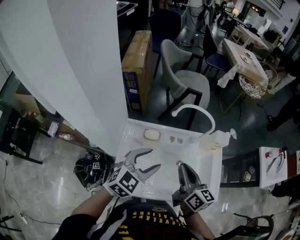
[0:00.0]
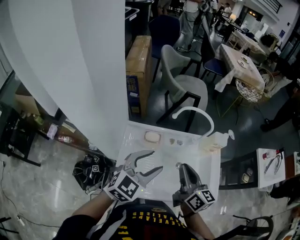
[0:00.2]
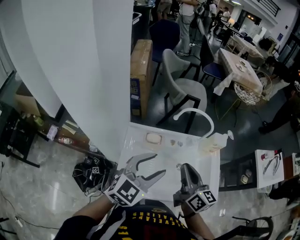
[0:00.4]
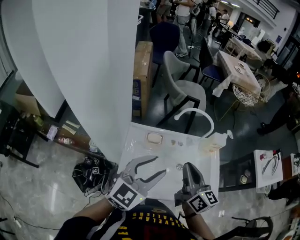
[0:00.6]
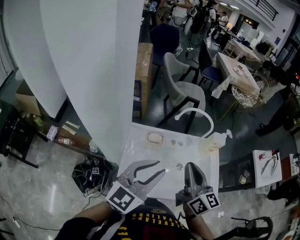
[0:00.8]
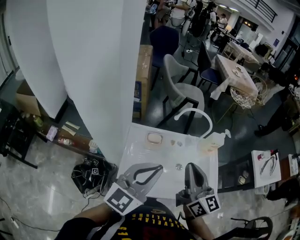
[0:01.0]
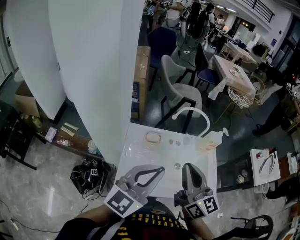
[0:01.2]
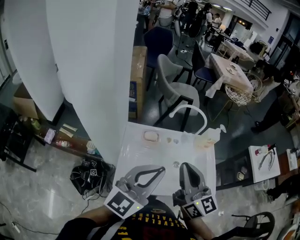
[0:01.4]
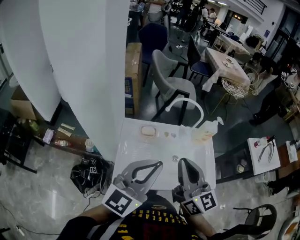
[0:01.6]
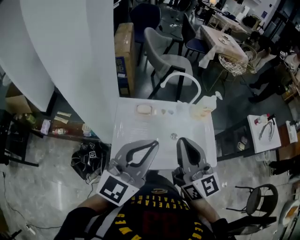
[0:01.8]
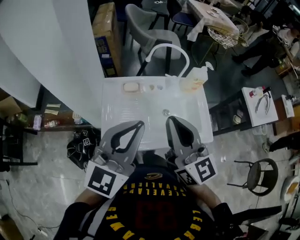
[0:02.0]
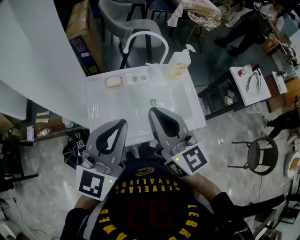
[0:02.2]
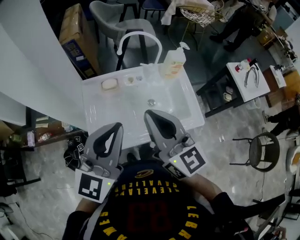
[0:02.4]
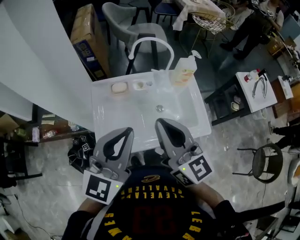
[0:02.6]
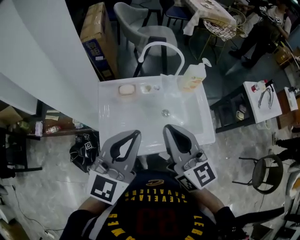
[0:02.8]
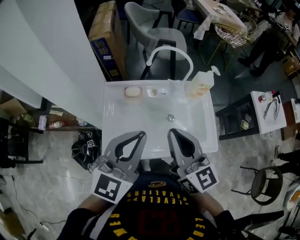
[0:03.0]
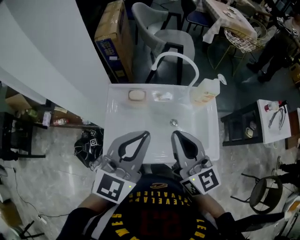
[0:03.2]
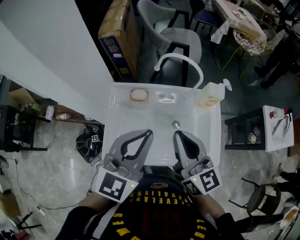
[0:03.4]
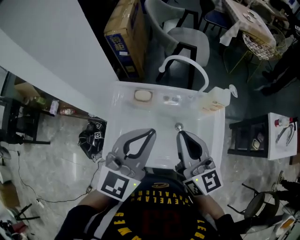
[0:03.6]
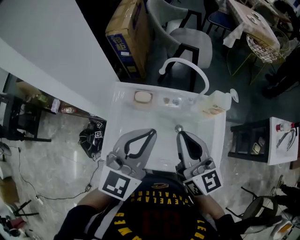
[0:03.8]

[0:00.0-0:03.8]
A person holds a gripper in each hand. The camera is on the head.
0:00.0 to 0:01.2: The grippers both shift upward and backward by about 20 cm. The right gripper swivels about 30 degrees. The left gripper angles its fingers upward, by about 30 degrees, and closes its fingers.
0:01.2 to 0:02.6: The left gripper changes place by about 5 cm. Meanwhile the right gripper shifts by about 5 cm.
0:02.6 to 0:03.8: Both grippers move forward and to the right, approximately 15 cm.

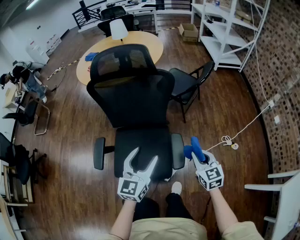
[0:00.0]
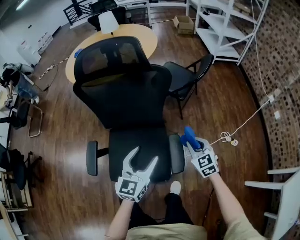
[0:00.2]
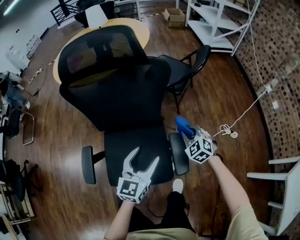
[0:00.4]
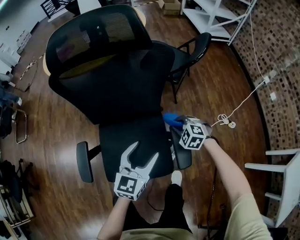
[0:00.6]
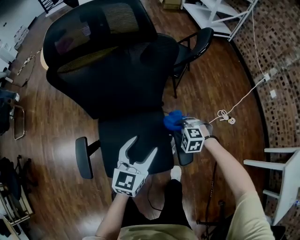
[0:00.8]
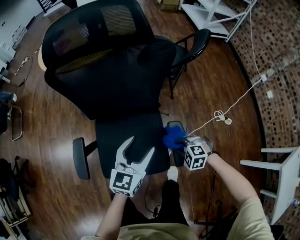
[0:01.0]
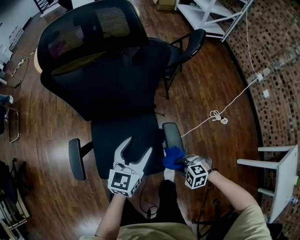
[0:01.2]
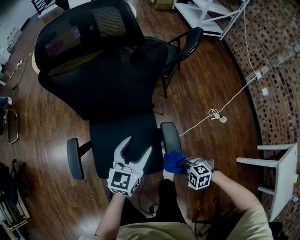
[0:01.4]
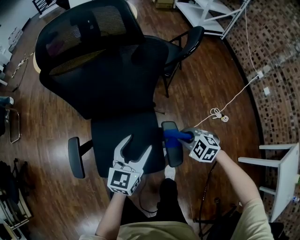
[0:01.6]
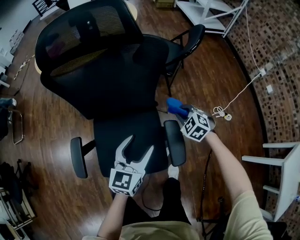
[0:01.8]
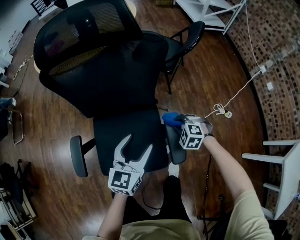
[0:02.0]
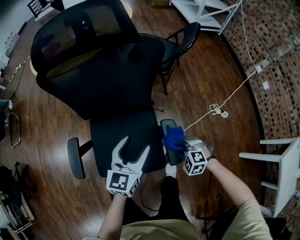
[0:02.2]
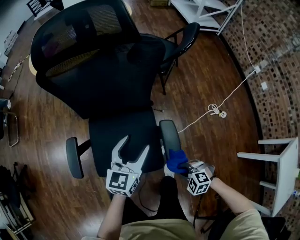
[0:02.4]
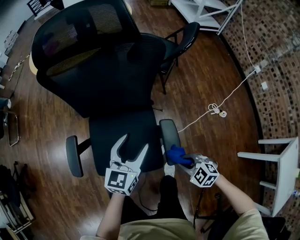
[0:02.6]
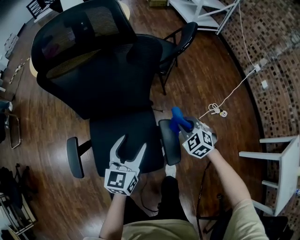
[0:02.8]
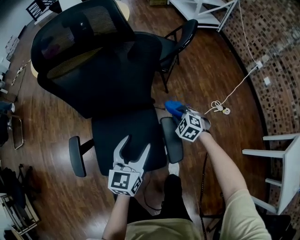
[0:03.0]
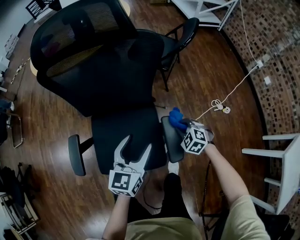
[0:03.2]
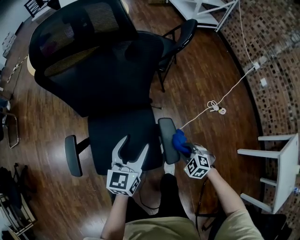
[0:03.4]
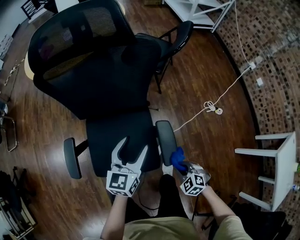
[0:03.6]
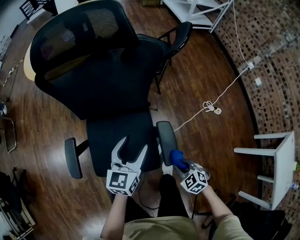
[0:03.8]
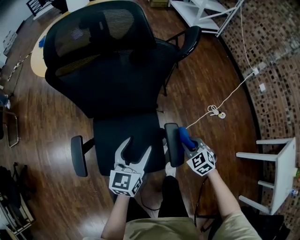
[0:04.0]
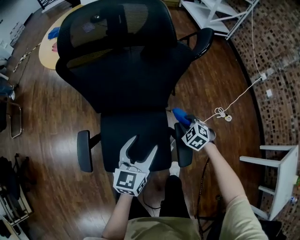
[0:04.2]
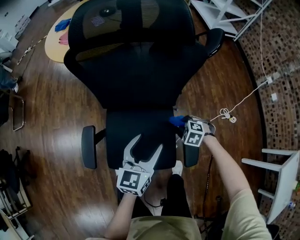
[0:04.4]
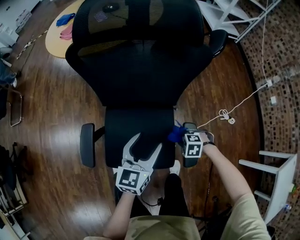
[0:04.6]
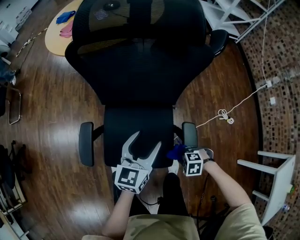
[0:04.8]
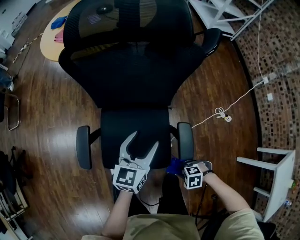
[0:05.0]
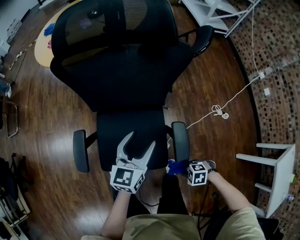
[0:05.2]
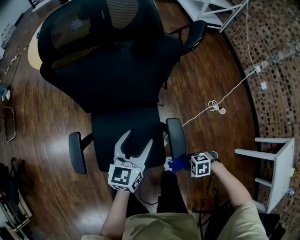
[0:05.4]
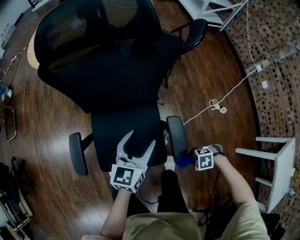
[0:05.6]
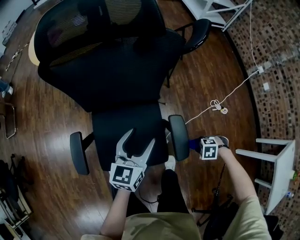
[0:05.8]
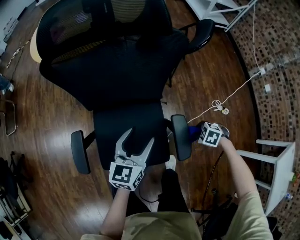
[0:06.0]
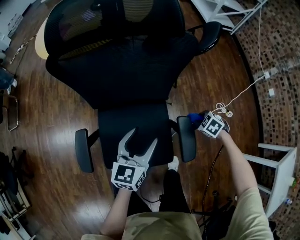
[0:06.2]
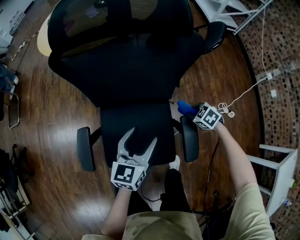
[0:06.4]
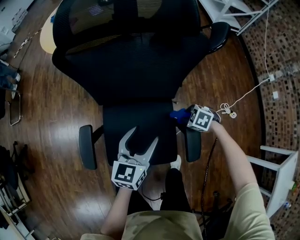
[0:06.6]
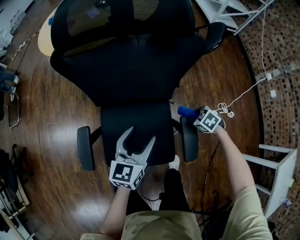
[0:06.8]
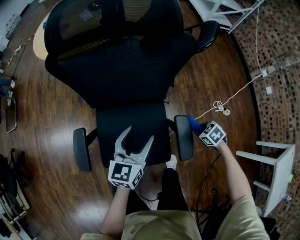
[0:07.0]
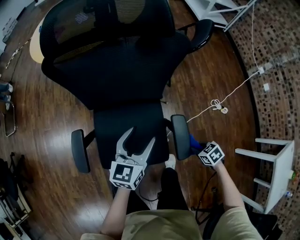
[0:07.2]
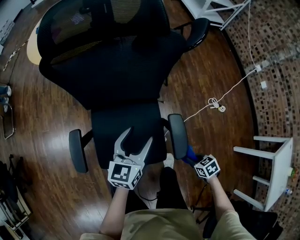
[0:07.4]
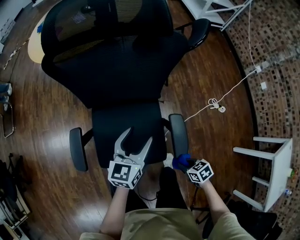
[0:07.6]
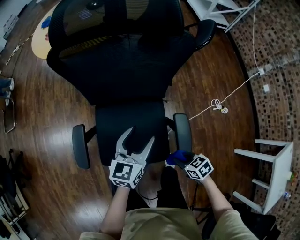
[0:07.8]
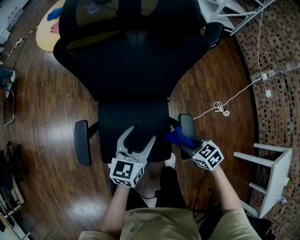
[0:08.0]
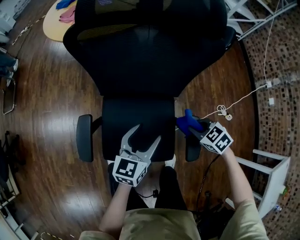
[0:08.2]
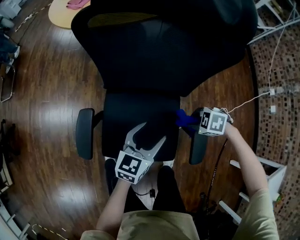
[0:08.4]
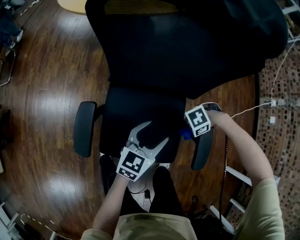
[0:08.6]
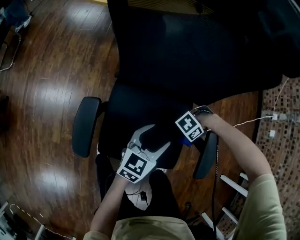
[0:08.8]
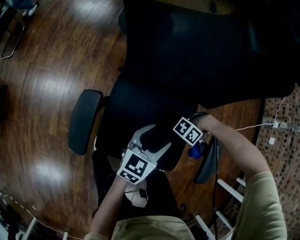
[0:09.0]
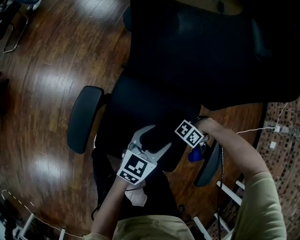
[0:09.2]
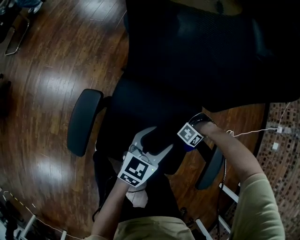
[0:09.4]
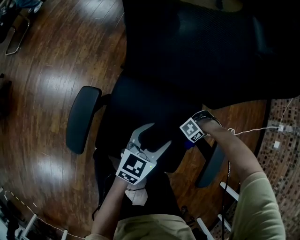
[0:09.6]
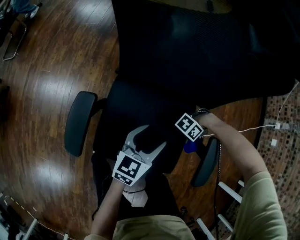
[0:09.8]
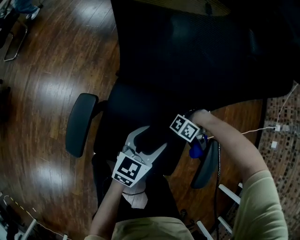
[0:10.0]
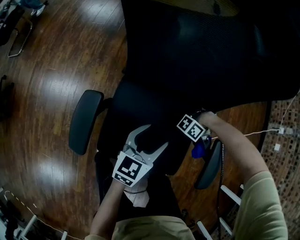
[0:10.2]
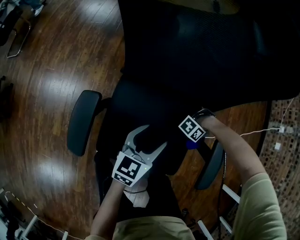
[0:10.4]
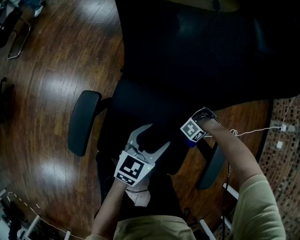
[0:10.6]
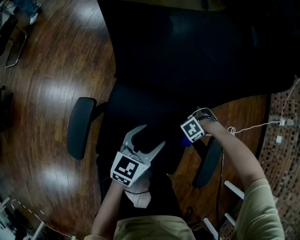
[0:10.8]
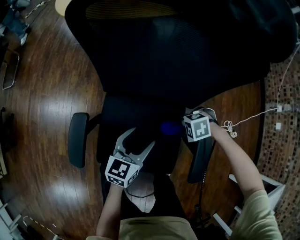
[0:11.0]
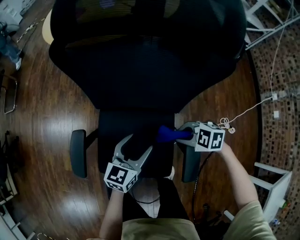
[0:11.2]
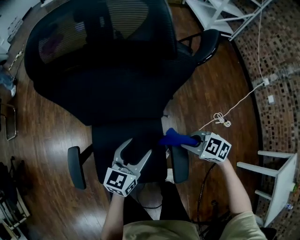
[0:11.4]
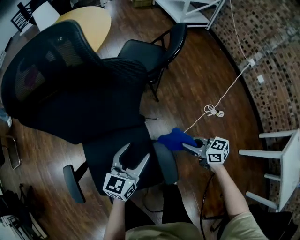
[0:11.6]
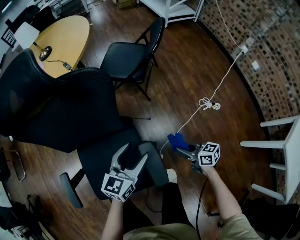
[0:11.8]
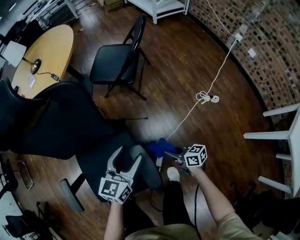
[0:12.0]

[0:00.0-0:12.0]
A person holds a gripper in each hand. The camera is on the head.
0:00.0 to 0:01.6: The two grippers go about 15 cm downward. The right gripper swivels some 50 degrees.
0:01.6 to 0:03.0: The right gripper moves forward and backward over approximately 30 cm, changing direction 2 times.
0:03.0 to 0:04.4: The right gripper changes its angle by about 20 degrees; the left gripper ends up roughly 5 cm from where it was.
0:06.0 to 0:07.6: The right gripper shifts by about 20 cm, and twists some 40 degrees clockwise, seen from behind.
0:07.6 to 0:09.0: The left gripper travels downward by approximately 15 cm, while the right gripper tips its fingers upward by about 50 degrees.
0:09.0 to 0:10.4: The right gripper goes up and down, about 15 cm each way, reversing 2 times.
0:10.4 to 0:12.0: The right gripper swings up and down, some 25 cm each way, with 2 reversals, and swivels approximately 170 degrees, while the left gripper ends up roughly 30 cm from where it was, and swivels approximately 20 degrees.

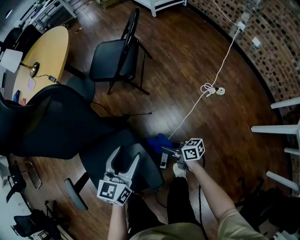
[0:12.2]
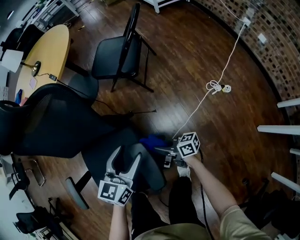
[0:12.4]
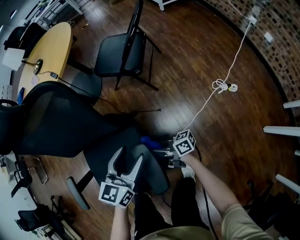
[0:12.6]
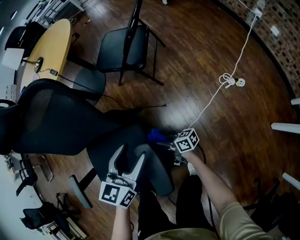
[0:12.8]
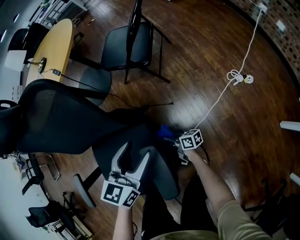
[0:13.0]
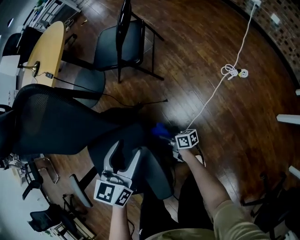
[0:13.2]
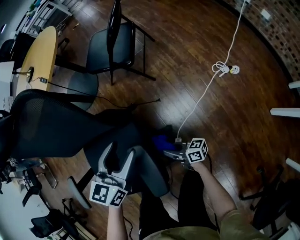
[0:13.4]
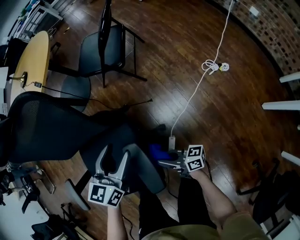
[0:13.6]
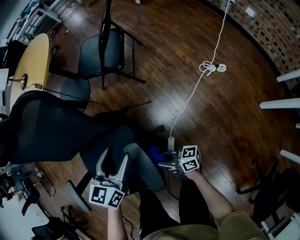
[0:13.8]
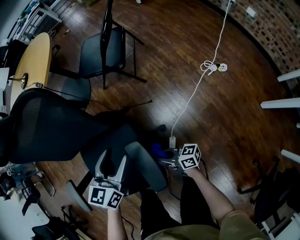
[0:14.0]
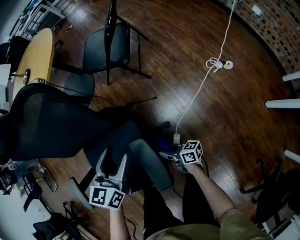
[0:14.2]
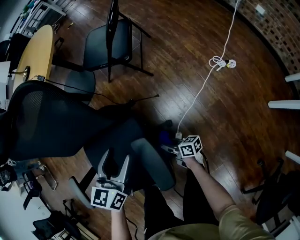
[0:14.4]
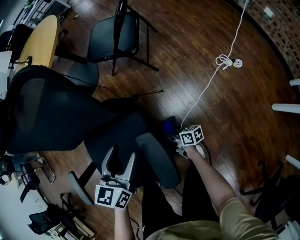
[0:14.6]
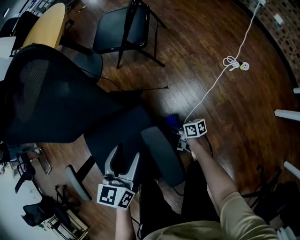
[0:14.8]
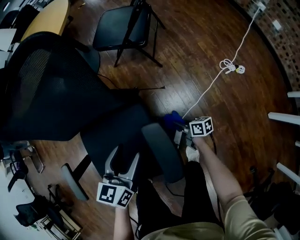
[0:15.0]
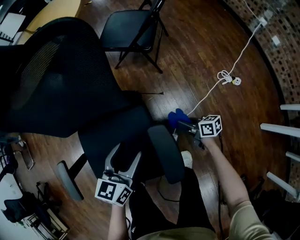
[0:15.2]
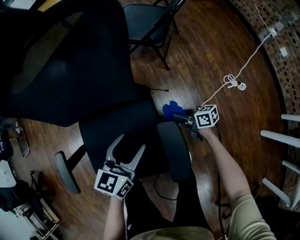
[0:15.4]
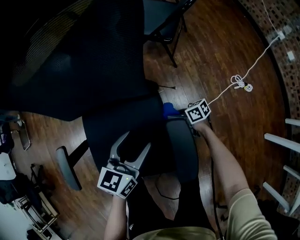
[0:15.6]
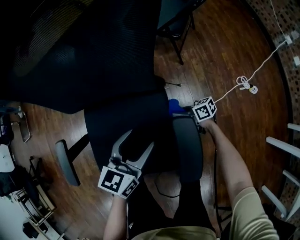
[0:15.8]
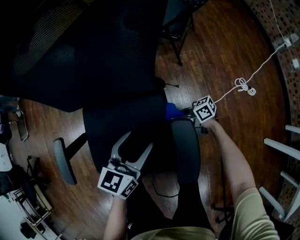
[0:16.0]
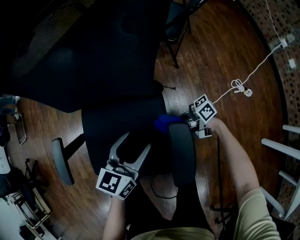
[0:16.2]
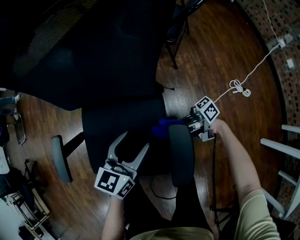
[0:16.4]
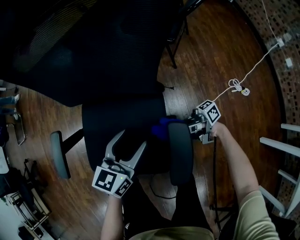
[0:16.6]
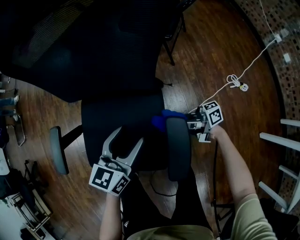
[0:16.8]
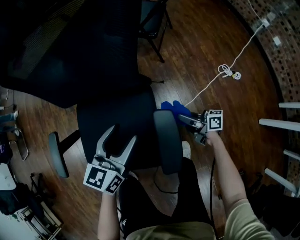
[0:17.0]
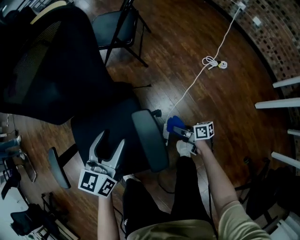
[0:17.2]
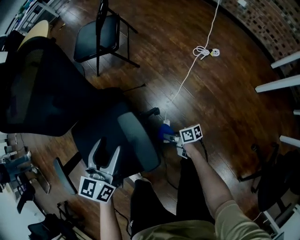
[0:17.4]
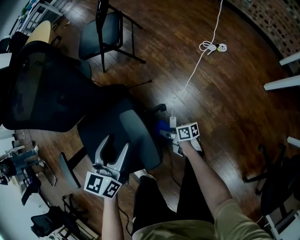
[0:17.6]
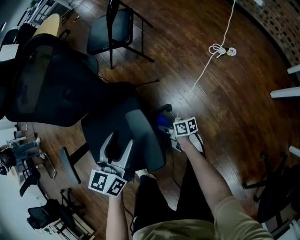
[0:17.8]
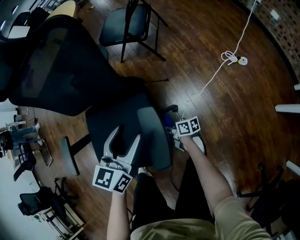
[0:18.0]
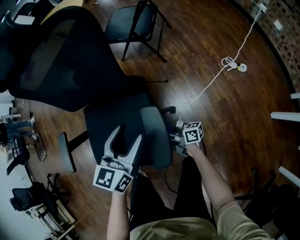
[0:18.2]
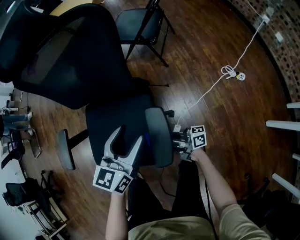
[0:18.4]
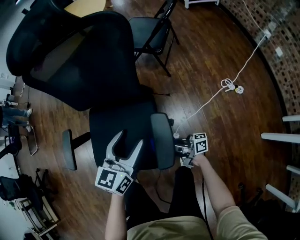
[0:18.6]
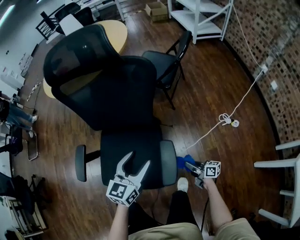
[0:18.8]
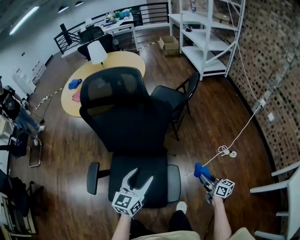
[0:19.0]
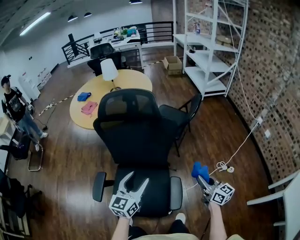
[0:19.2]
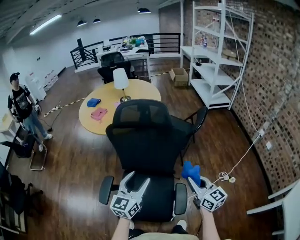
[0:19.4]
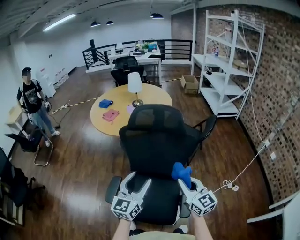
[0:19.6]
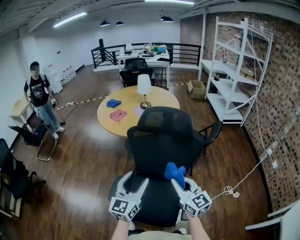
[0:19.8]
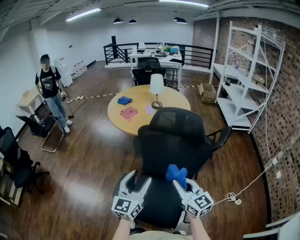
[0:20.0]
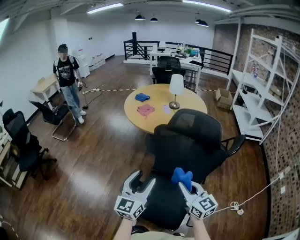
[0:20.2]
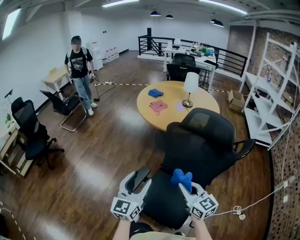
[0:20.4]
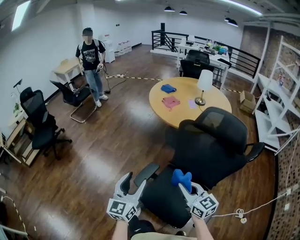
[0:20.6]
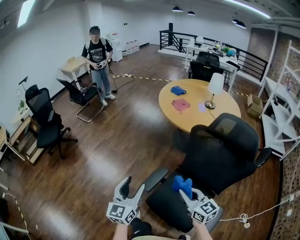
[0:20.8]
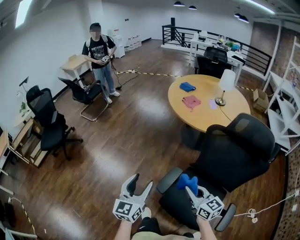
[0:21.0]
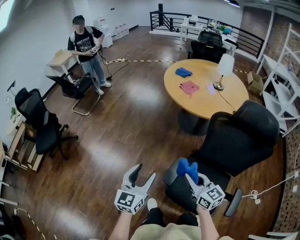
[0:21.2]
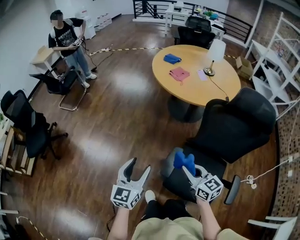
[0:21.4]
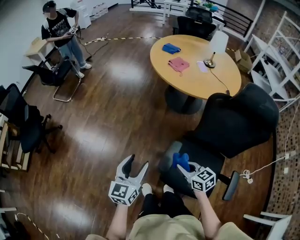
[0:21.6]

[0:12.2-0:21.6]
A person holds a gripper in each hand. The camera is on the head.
0:12.2 to 0:13.8: The right gripper shifts about 10 cm to the left and backward, moves approximately 15 cm downward and comes back, and swivels some 20 degrees.
0:13.8 to 0:15.4: The right gripper travels forward and downward by some 20 cm, and changes its angle by approximately 30 degrees. The left gripper moves to the left, some 10 cm.
0:15.4 to 0:17.0: The right gripper swings up and down, roughly 15 cm each way, with 2 reversals, and turns by some 20 degrees.
0:17.0 to 0:18.4: The left gripper heads to the right, covering some 5 cm; the right gripper shifts some 10 cm backward and to the left, travels downward and back again, about 10 cm each way, and changes its angle by approximately 20 degrees.
0:18.4 to 0:20.0: The right gripper moves upward, about 50 cm, and rotates around the line of its fingers by approximately 60 degrees, counterclockwise from behind, while the left gripper travels upward and to the left by about 40 cm, and changes its angle by roughly 40 degrees.
0:20.0 to 0:21.6: The left gripper moves to the left and downward, roughly 35 cm, and changes its angle by roughly 20 degrees. Meanwhile the right gripper heads to the left, downward and forward, covering approximately 40 cm, and turns by about 40 degrees.
